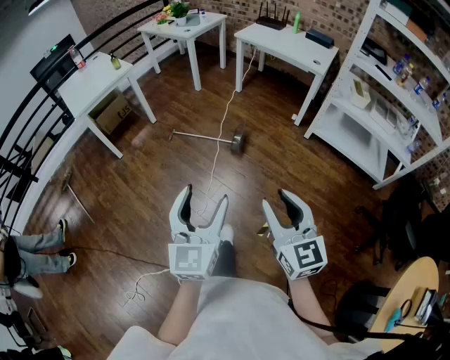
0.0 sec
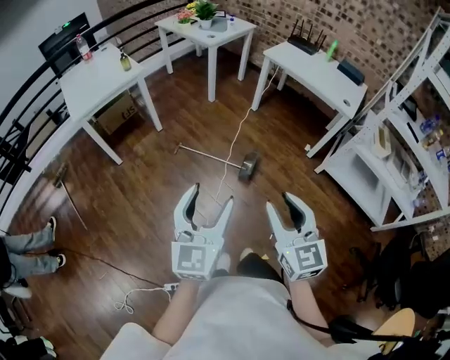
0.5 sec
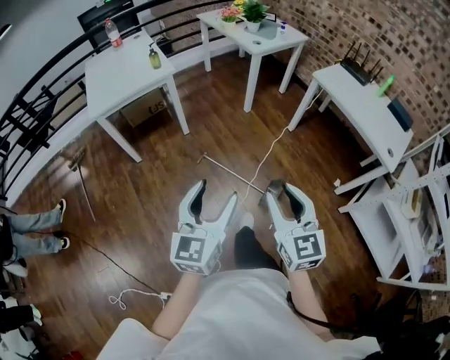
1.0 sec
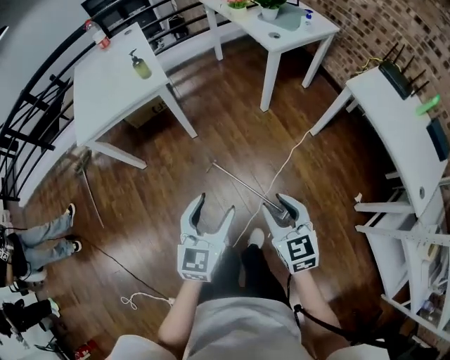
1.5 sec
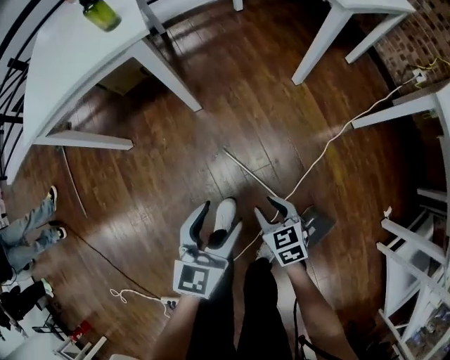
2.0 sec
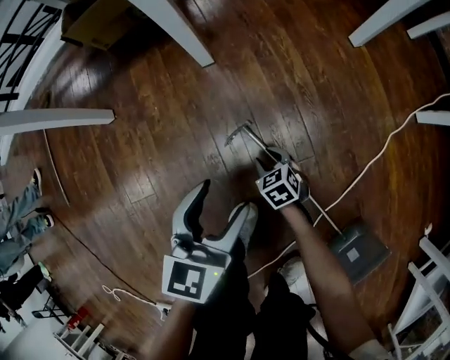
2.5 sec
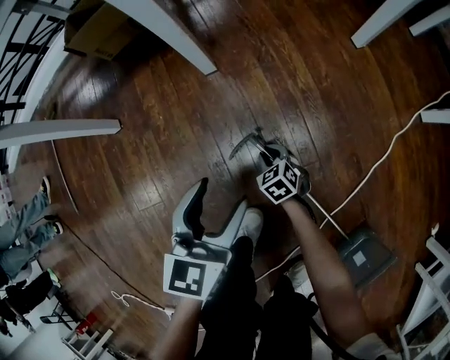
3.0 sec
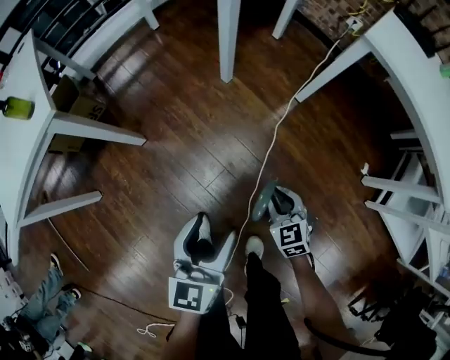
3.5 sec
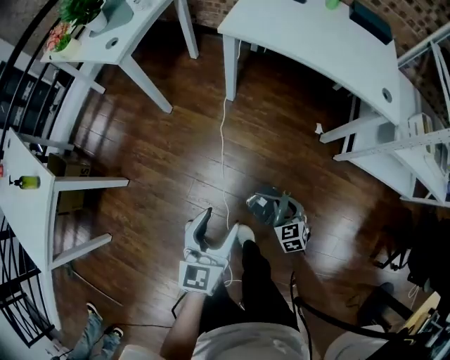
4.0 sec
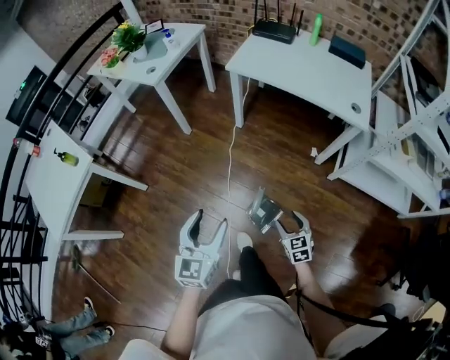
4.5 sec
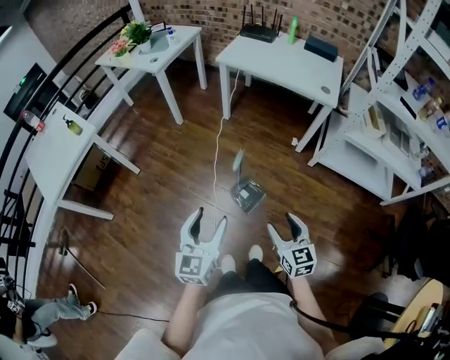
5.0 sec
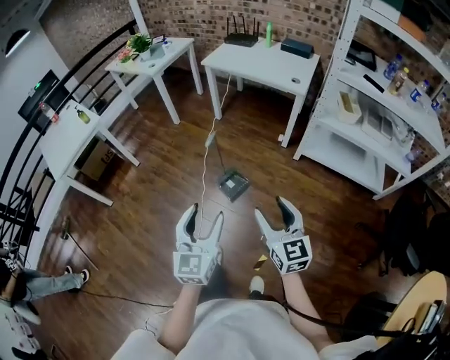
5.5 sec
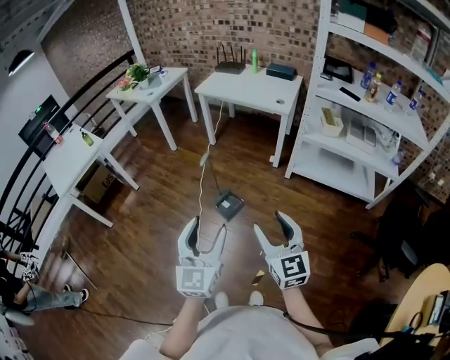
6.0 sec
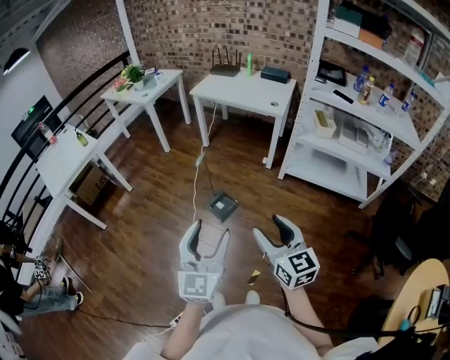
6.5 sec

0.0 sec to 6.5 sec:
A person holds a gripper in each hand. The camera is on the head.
0.0 sec to 2.0 sec: The two grippers travel together, about 90 cm. The right gripper tilts its fingers approximately 40 degrees downward. Meanwhile the left gripper swivels some 30 degrees.
2.0 sec to 4.5 sec: The left gripper shifts by about 40 cm, and turns by about 30 degrees. The right gripper travels downward and back again, roughly 50 cm each way, changes its angle by roughly 50 degrees, and opens its fingers.
4.5 sec to 6.5 sec: The pair of grippers is taken backward, roughly 50 cm. The right gripper travels upward by approximately 35 cm, and tilts its fingers roughly 30 degrees upward. Meanwhile the left gripper turns by approximately 20 degrees.

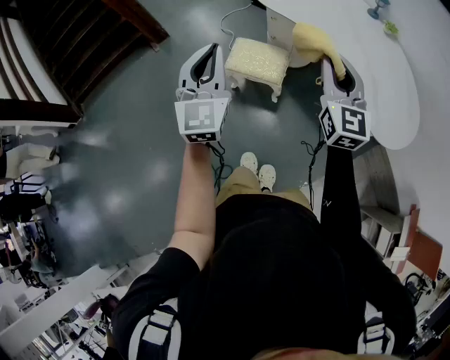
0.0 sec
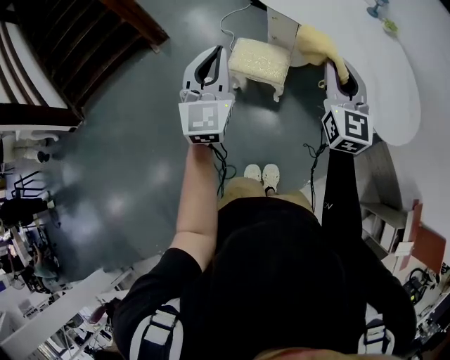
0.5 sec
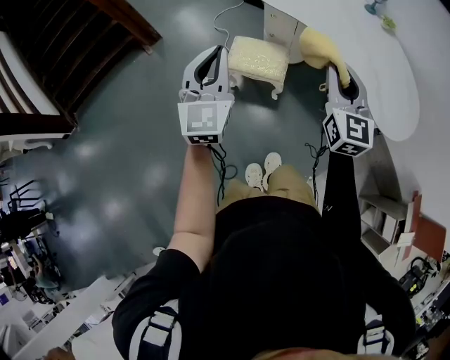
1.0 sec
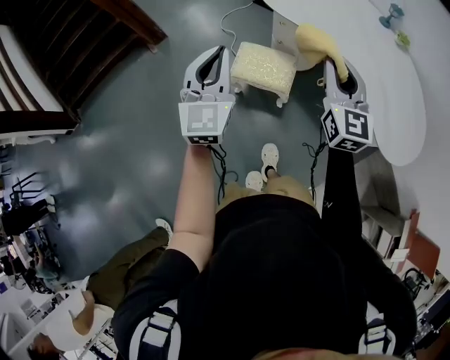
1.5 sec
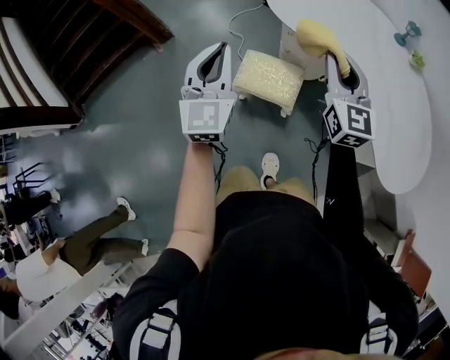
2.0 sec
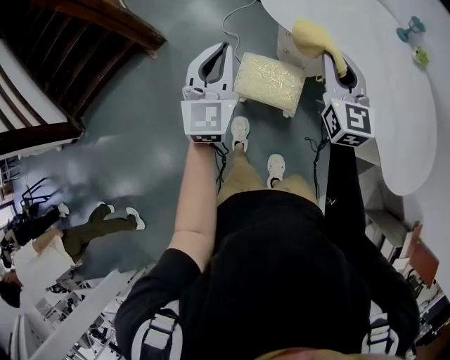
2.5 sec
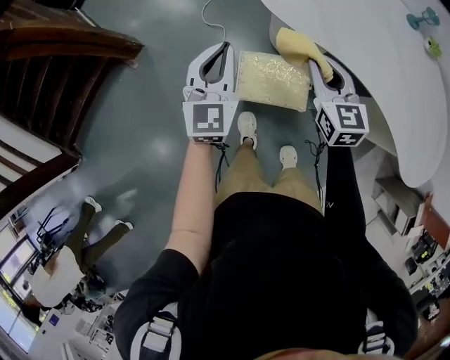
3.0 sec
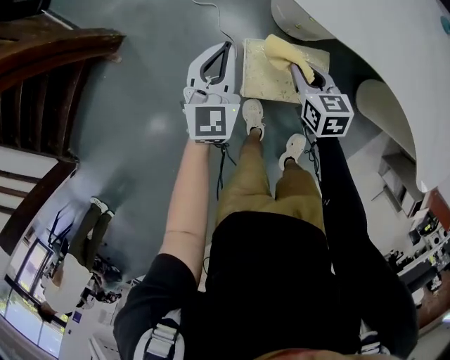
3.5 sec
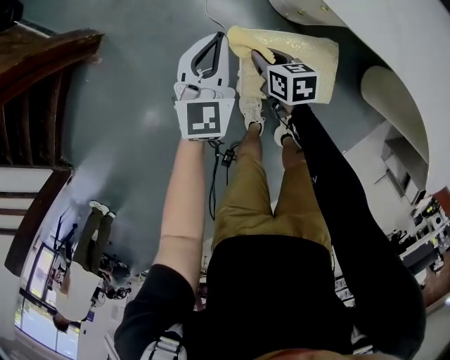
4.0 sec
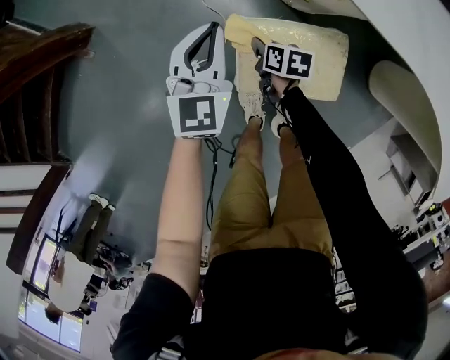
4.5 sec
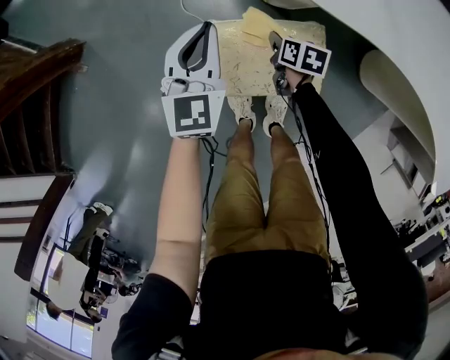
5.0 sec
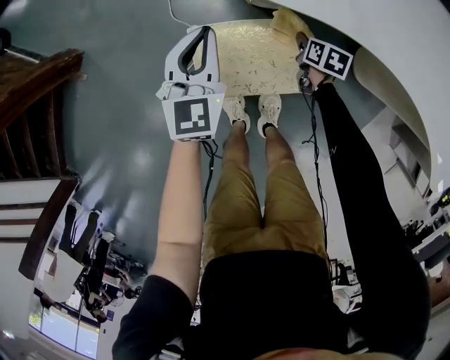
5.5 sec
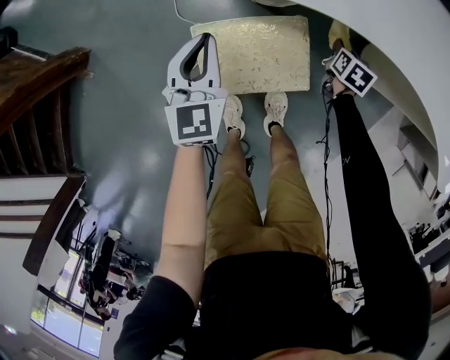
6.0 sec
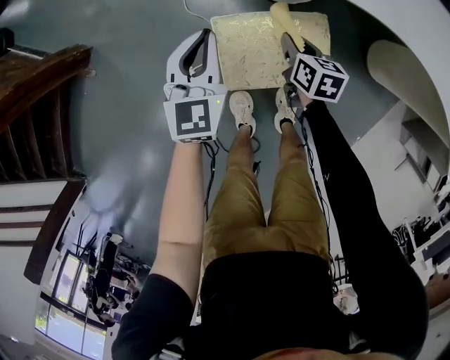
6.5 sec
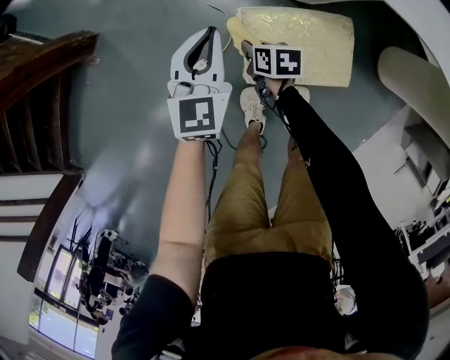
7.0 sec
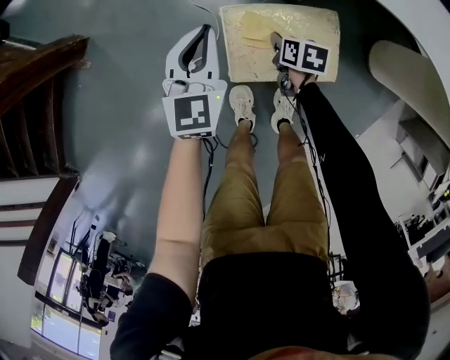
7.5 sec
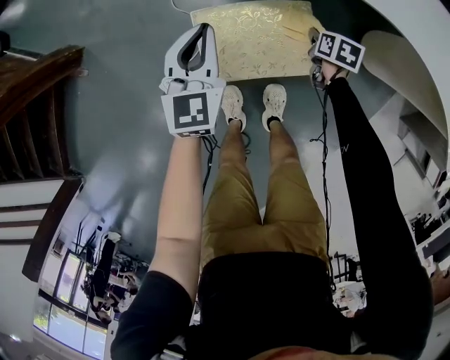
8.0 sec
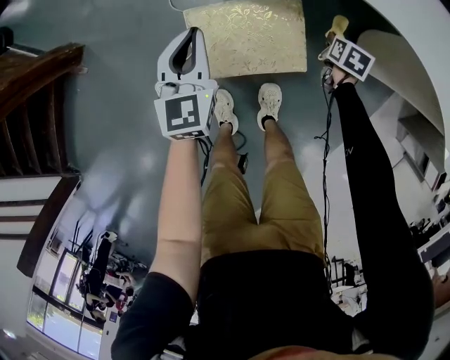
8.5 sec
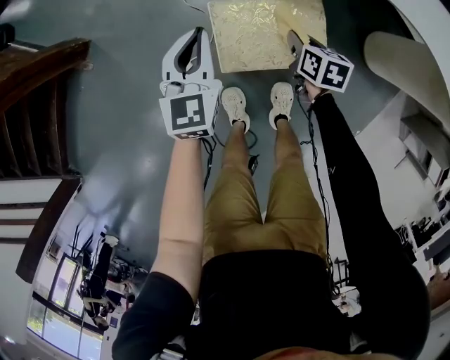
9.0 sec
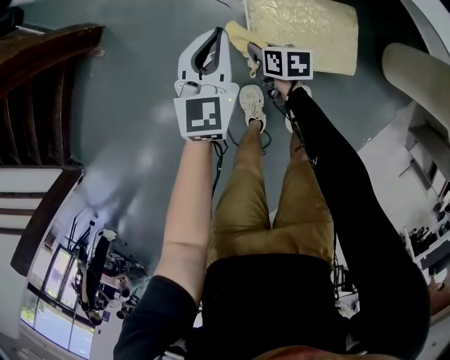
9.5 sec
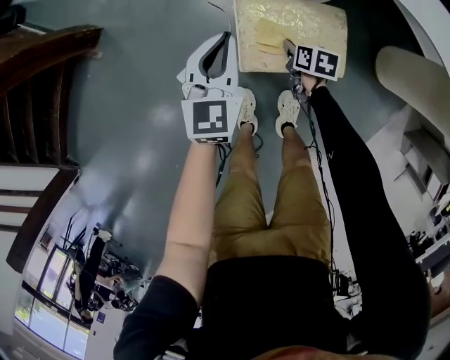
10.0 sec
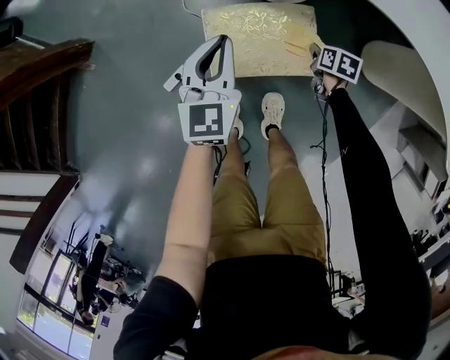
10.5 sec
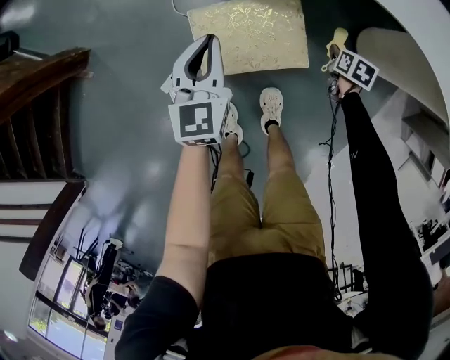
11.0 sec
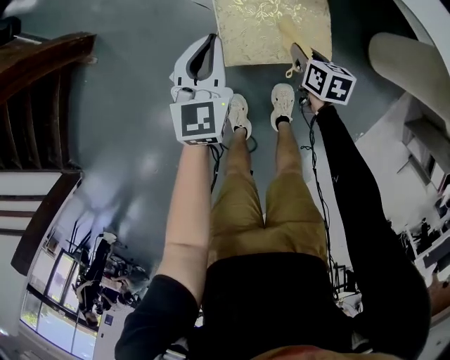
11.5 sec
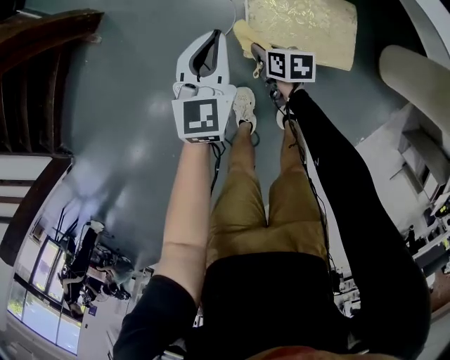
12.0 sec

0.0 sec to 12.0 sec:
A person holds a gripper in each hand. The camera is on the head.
0.0 sec to 2.0 sec: The grippers both shift forward by roughly 20 cm.
2.0 sec to 4.0 sec: The right gripper is displaced downward, to the left and forward by some 60 cm, and points its fingers some 50 degrees further downward. The left gripper travels downward and forward by approximately 50 cm, and rotates approximately 30 degrees.
4.0 sec to 6.0 sec: The right gripper changes place by roughly 40 cm, and rotates roughly 40 degrees. Meanwhile the left gripper shifts by some 15 cm.
6.0 sec to 8.0 sec: The right gripper reaches some 5 cm upward, then returns.
8.0 sec to 10.0 sec: The left gripper moves roughly 10 cm.

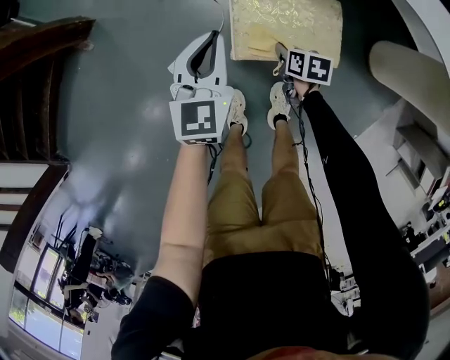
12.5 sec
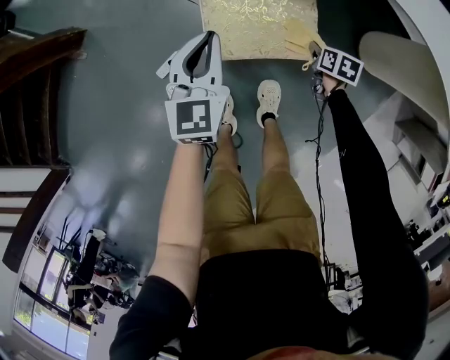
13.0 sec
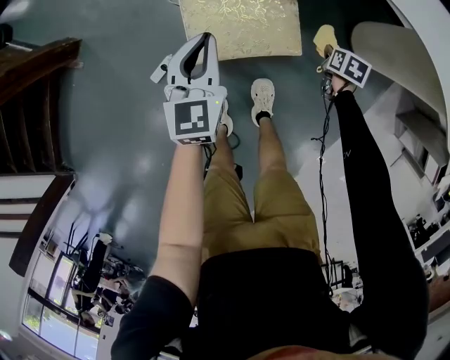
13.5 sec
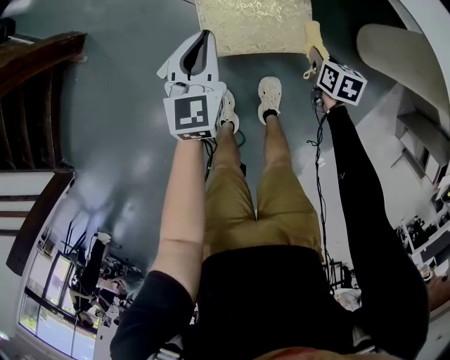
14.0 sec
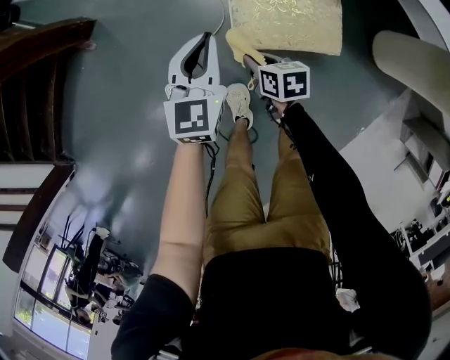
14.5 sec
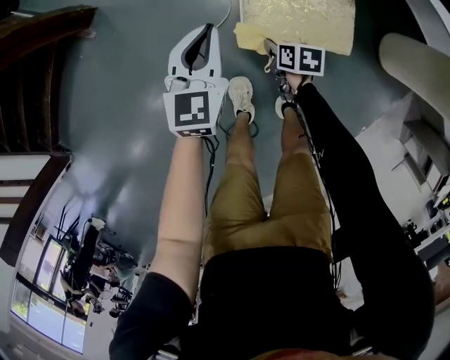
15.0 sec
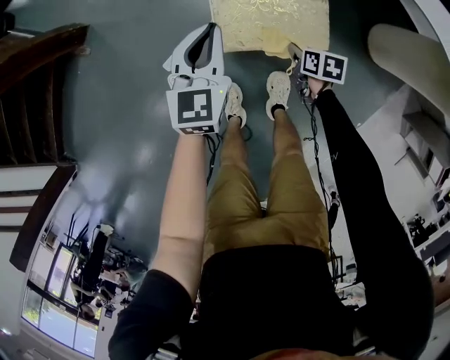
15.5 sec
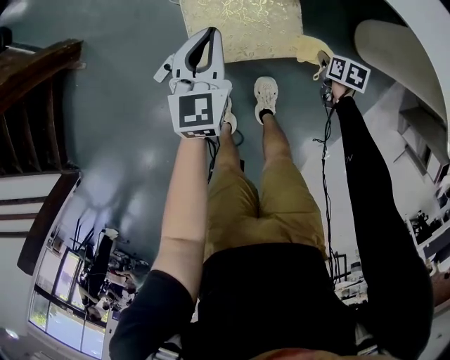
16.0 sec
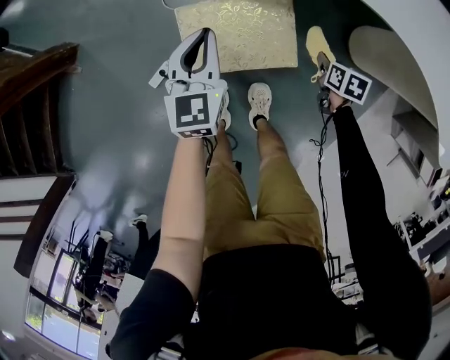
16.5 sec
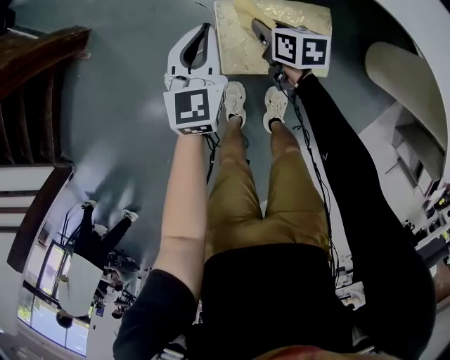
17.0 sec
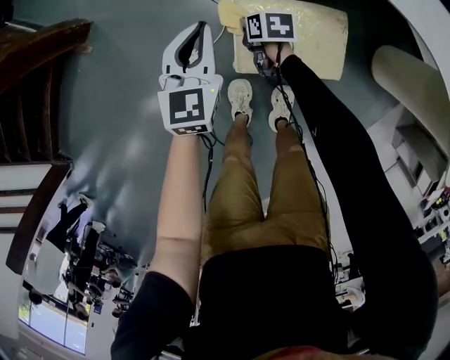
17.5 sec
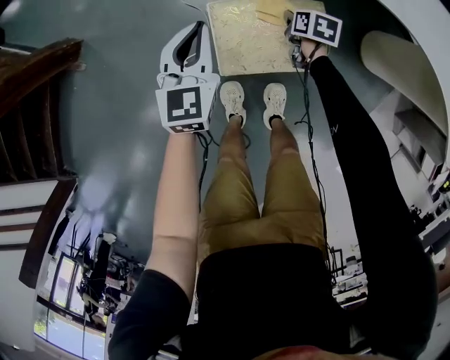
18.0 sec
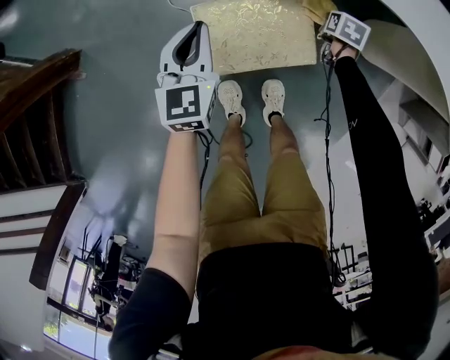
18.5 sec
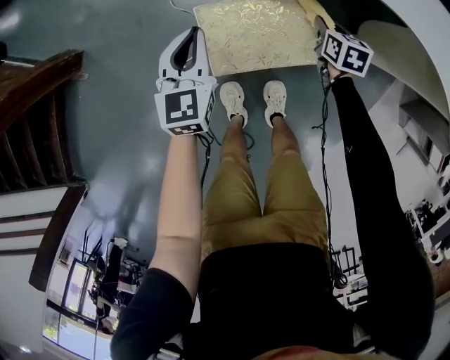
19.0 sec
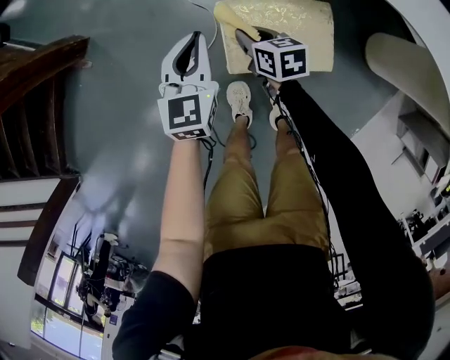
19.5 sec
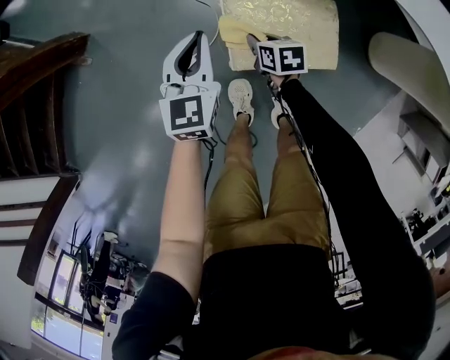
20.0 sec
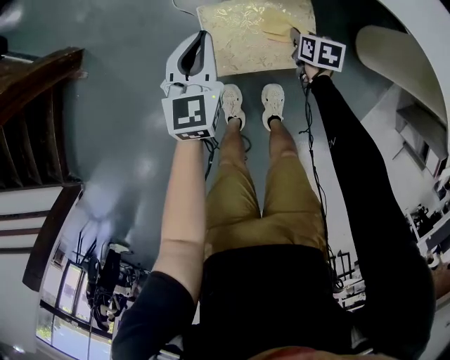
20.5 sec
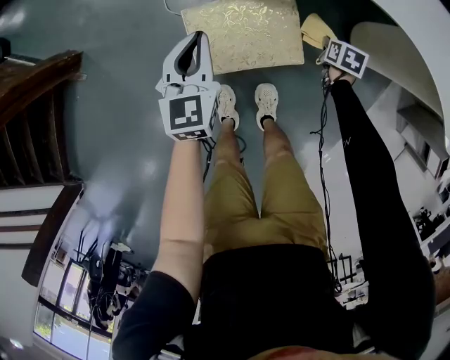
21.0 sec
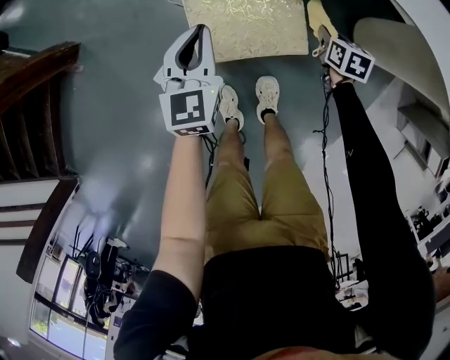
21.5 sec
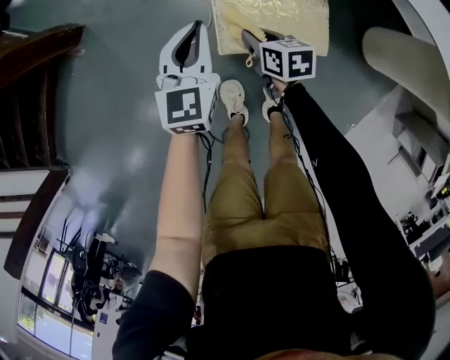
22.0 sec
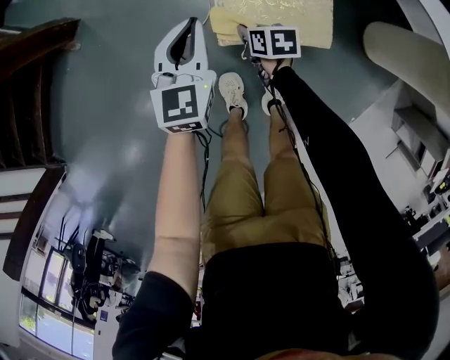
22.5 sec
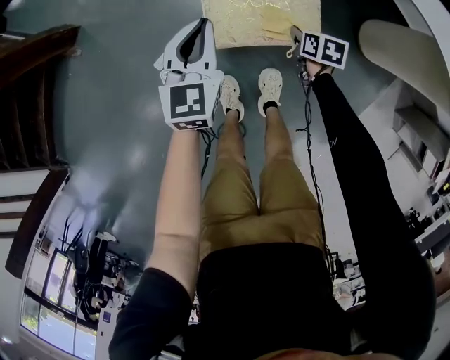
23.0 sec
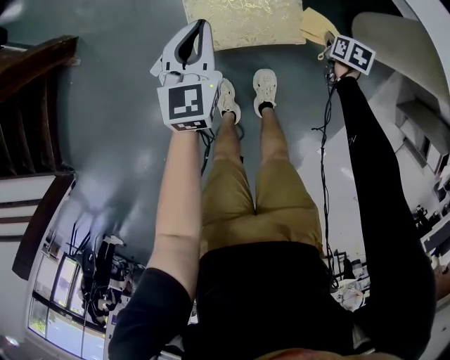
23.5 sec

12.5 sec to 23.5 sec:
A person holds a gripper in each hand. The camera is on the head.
14.5 sec to 16.0 sec: The left gripper moves to the right, about 15 cm. Meanwhile the right gripper is displaced to the right by roughly 35 cm, and changes its angle by approximately 30 degrees.
16.0 sec to 18.0 sec: The left gripper goes approximately 10 cm to the left and forward. The right gripper shifts approximately 25 cm forward and to the left.
18.0 sec to 20.0 sec: The left gripper changes place by approximately 5 cm. Meanwhile the right gripper reaches roughly 10 cm upward, then returns.
20.0 sec to 21.5 sec: The left gripper shifts by some 10 cm. Meanwhile the right gripper changes place by approximately 30 cm, and changes its angle by about 20 degrees.
